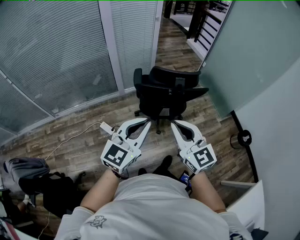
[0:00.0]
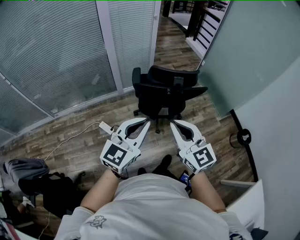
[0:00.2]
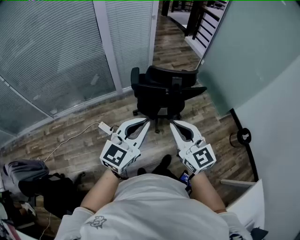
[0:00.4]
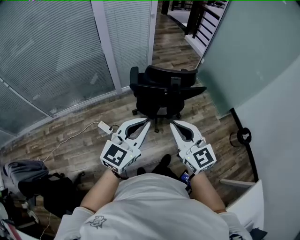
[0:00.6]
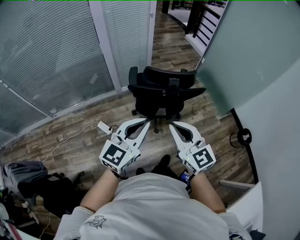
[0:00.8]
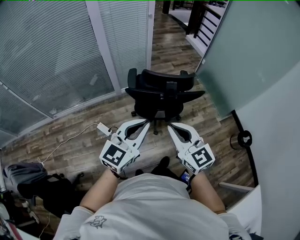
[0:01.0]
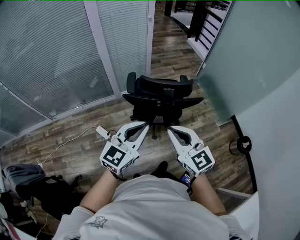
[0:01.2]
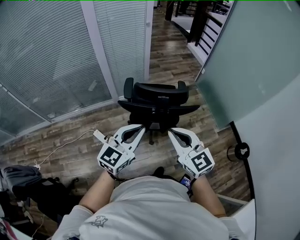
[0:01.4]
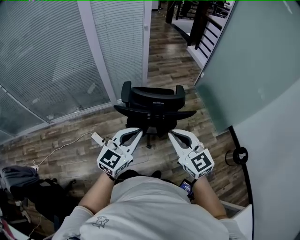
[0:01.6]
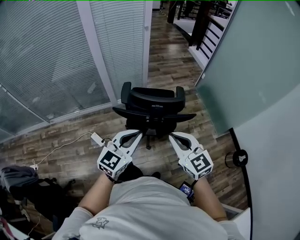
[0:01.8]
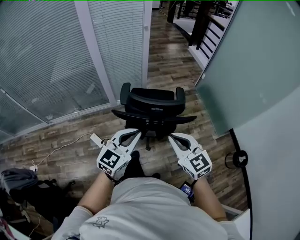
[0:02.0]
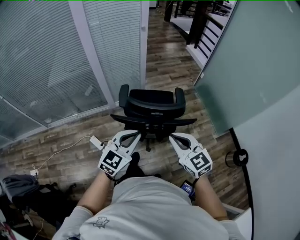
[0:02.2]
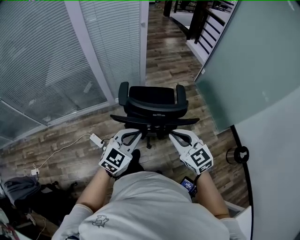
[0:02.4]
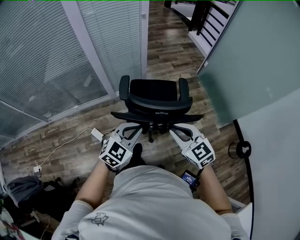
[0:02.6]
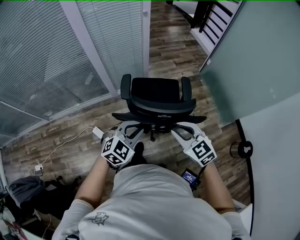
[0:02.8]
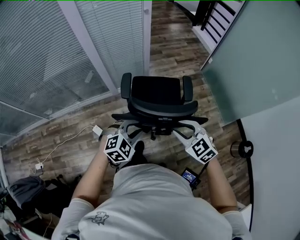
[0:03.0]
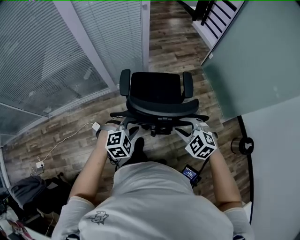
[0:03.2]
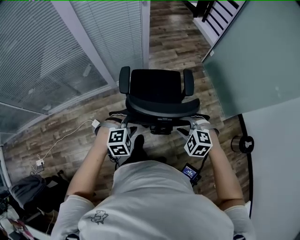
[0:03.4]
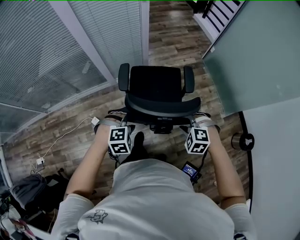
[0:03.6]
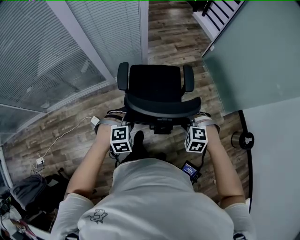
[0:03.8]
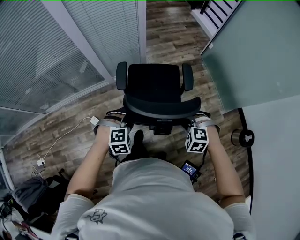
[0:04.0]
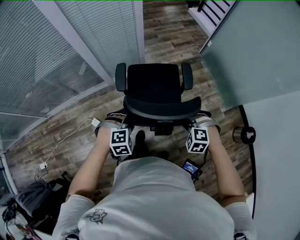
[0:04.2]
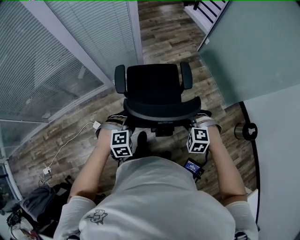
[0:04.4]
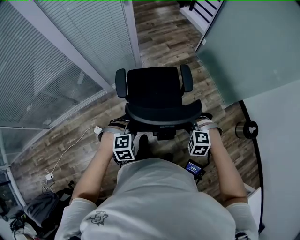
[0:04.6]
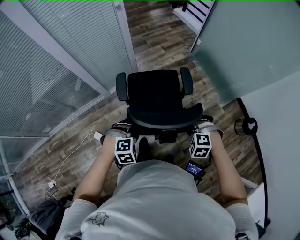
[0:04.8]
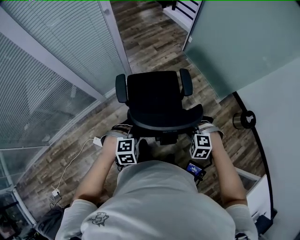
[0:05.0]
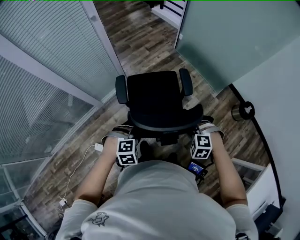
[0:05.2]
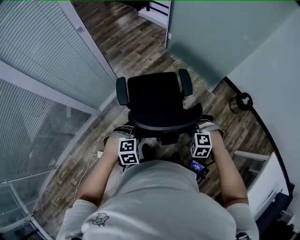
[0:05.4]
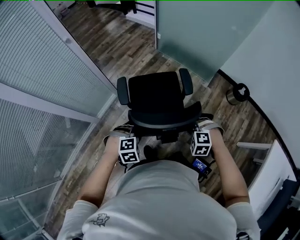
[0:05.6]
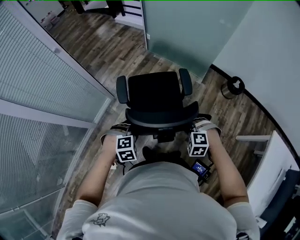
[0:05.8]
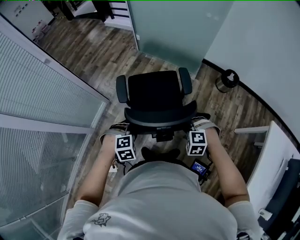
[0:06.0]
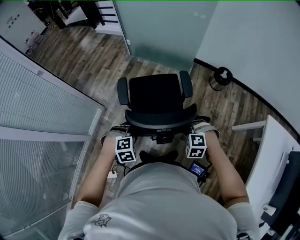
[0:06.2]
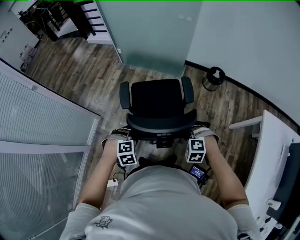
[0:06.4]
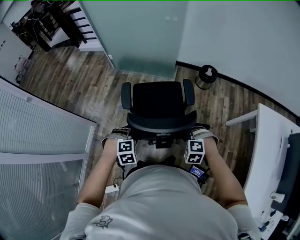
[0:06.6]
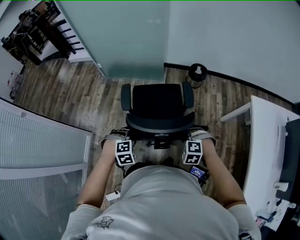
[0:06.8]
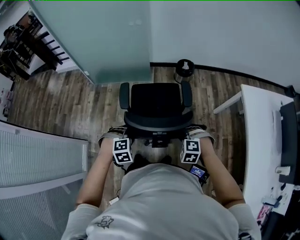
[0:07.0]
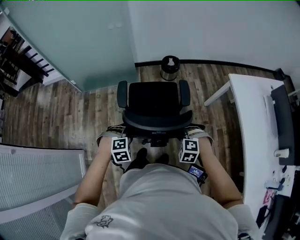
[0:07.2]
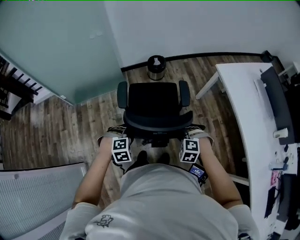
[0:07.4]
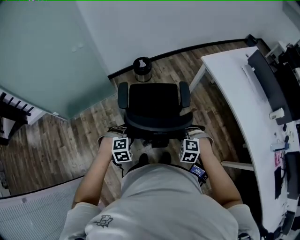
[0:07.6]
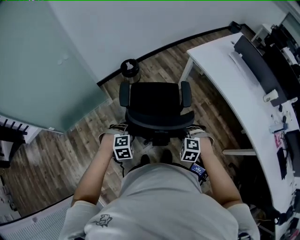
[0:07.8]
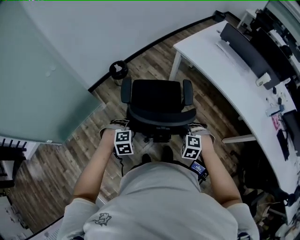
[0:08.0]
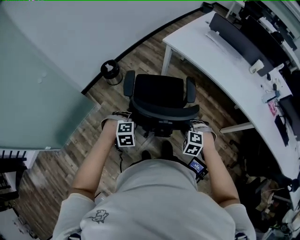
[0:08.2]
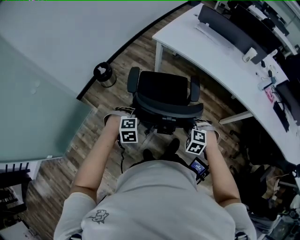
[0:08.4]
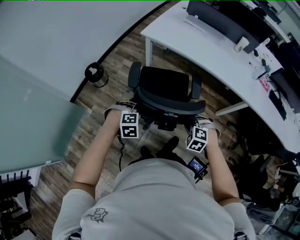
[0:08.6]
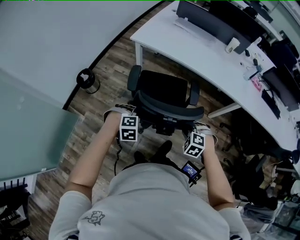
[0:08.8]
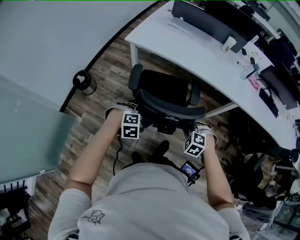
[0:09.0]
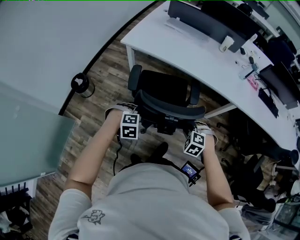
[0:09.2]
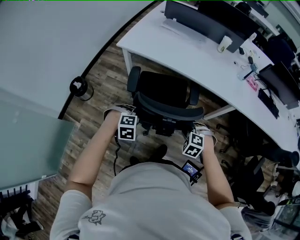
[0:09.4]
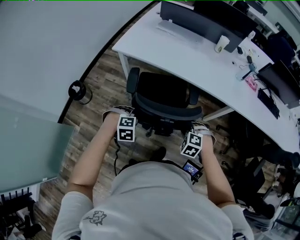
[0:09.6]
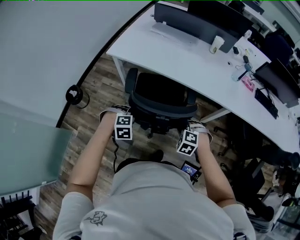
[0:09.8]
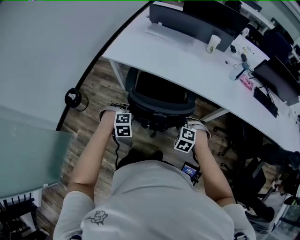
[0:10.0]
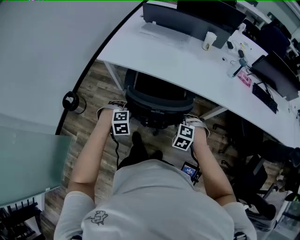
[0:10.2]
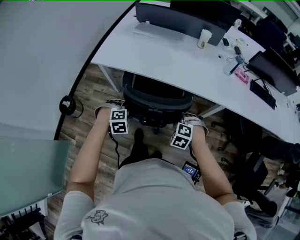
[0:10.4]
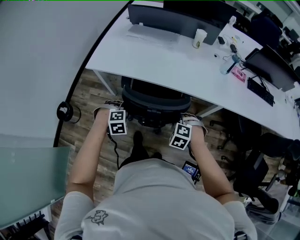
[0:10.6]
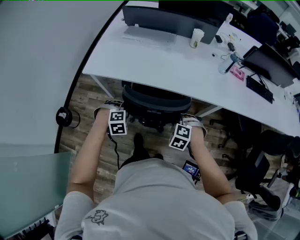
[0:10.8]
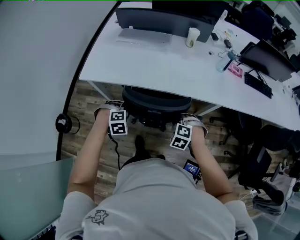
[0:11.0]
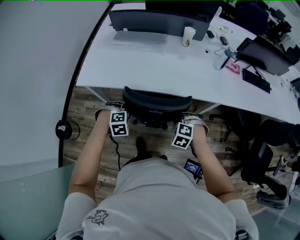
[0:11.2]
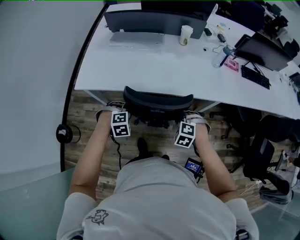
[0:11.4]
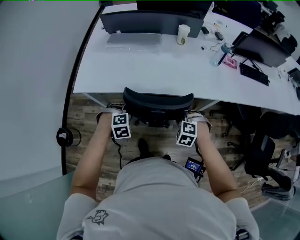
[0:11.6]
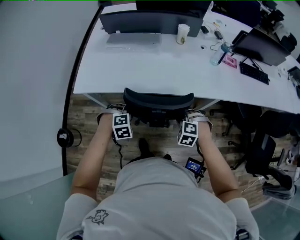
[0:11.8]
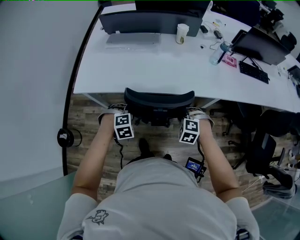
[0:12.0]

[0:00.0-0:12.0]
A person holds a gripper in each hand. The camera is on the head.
0:00.0 to 0:01.6: Both grippers travel together forward and to the right, some 20 cm.
0:01.6 to 0:03.0: The left gripper heads downward and forward, covering about 25 cm, tilts its fingers about 40 degrees downward, and opens. The right gripper moves forward and downward, some 25 cm, changes its angle by some 30 degrees, and opens.
0:03.0 to 0:04.4: The right gripper travels downward and to the right by roughly 15 cm, and points its fingers about 30 degrees further downward; the left gripper goes roughly 10 cm downward, and turns by roughly 30 degrees.
0:04.4 to 0:06.0: The left gripper moves roughly 20 cm, and swivels roughly 40 degrees, while the right gripper shifts by about 20 cm, and swivels some 30 degrees.
0:06.0 to 0:07.6: The right gripper ends up approximately 30 cm from where it was, and twists roughly 50 degrees clockwise, seen from behind. Meanwhile the left gripper moves roughly 35 cm, and rotates around the line of its fingers by approximately 50 degrees, clockwise from behind.
0:07.6 to 0:09.0: The right gripper ends up approximately 25 cm from where it was, and rotates around the line of its fingers by about 50 degrees, clockwise from behind; the left gripper shifts by roughly 30 cm, and rolls clockwise, seen from behind, by roughly 40 degrees.
0:09.0 to 0:10.4: The two grippers go roughly 25 cm forward and to the right.
0:10.4 to 0:12.0: The grippers both shift forward by approximately 15 cm.

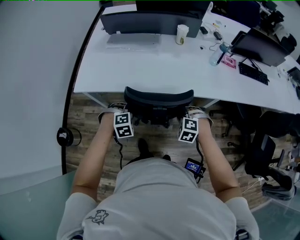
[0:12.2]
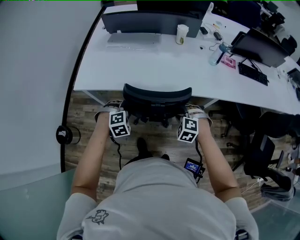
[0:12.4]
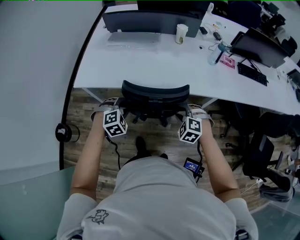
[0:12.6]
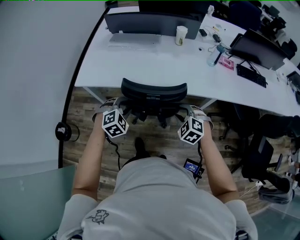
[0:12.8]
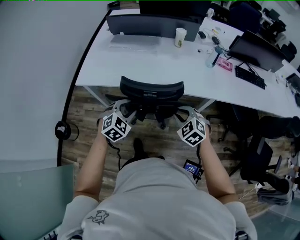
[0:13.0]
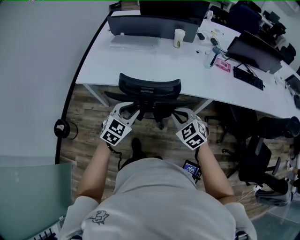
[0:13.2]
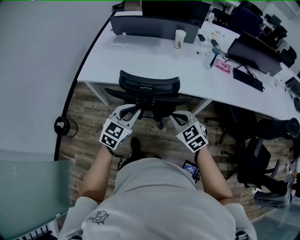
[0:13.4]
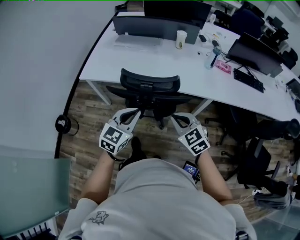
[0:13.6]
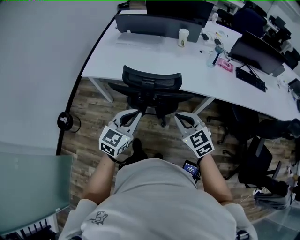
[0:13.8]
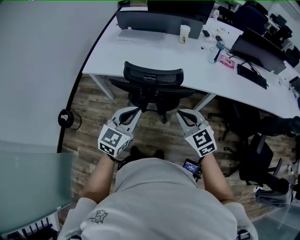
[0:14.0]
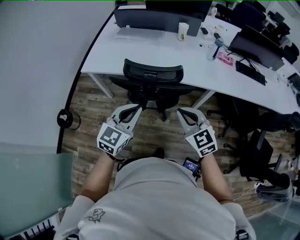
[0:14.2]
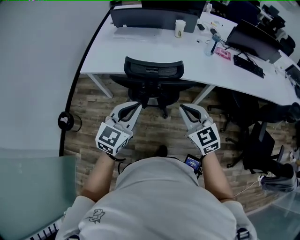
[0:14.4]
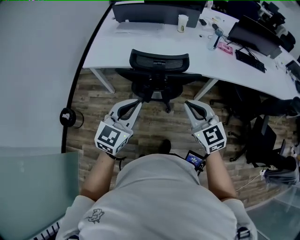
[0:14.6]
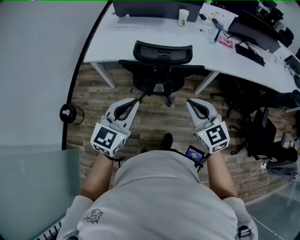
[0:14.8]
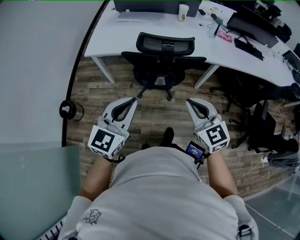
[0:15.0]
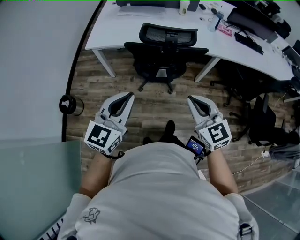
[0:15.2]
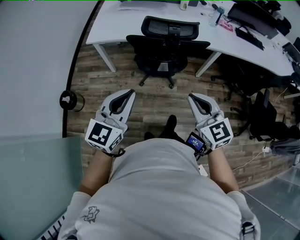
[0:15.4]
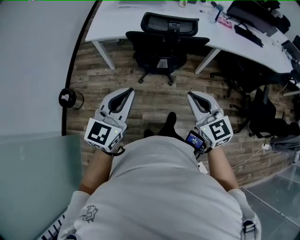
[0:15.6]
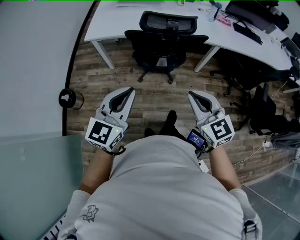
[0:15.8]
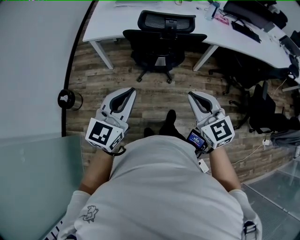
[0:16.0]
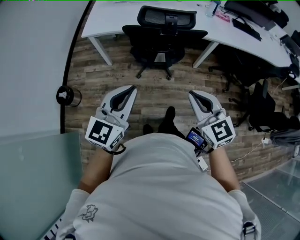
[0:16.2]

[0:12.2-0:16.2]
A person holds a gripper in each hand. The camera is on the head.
0:12.2 to 0:13.6: The left gripper travels upward, backward and to the right by roughly 30 cm, tips its fingers upward by approximately 50 degrees, and closes up. The right gripper shifts about 20 cm upward and backward, tilts its fingers some 30 degrees upward, and closes up.
0:13.6 to 0:14.8: The right gripper shifts some 15 cm backward, upward and to the left. The left gripper shifts some 20 cm backward, to the left and upward.
0:14.8 to 0:16.2: The grippers both shift backward and to the left by roughly 15 cm.

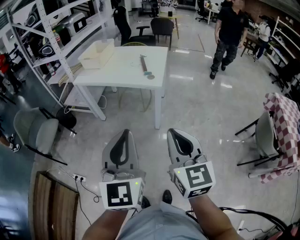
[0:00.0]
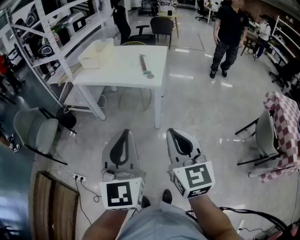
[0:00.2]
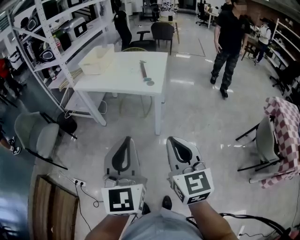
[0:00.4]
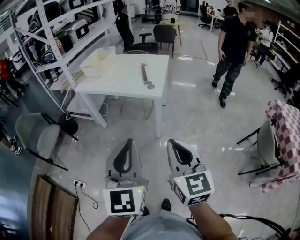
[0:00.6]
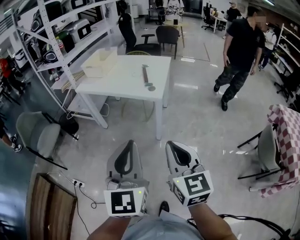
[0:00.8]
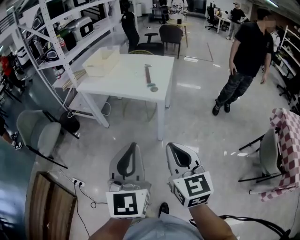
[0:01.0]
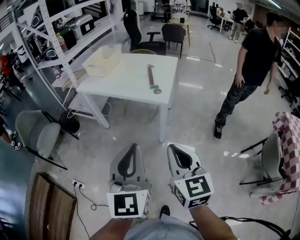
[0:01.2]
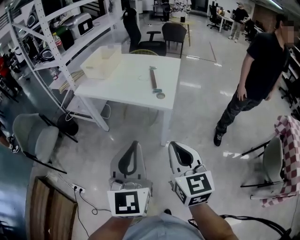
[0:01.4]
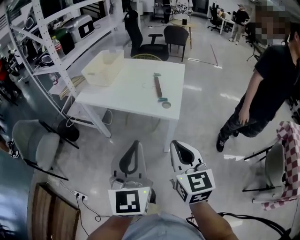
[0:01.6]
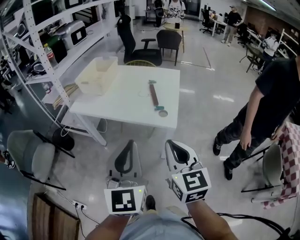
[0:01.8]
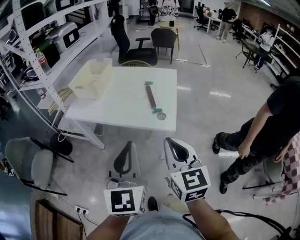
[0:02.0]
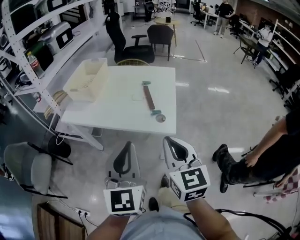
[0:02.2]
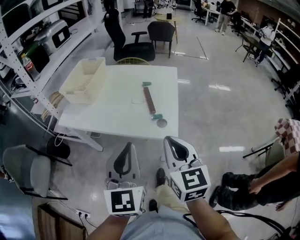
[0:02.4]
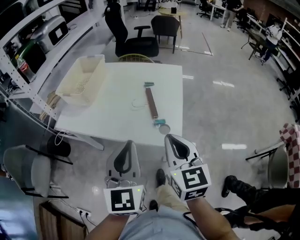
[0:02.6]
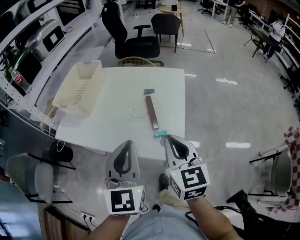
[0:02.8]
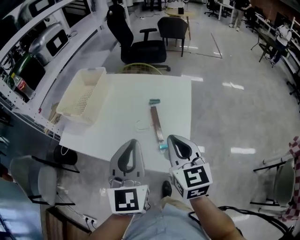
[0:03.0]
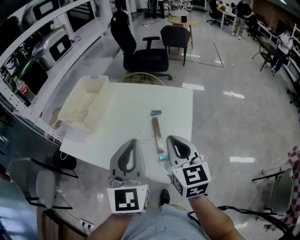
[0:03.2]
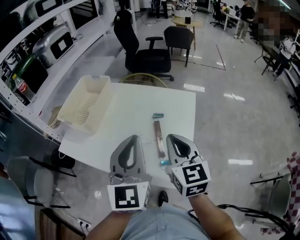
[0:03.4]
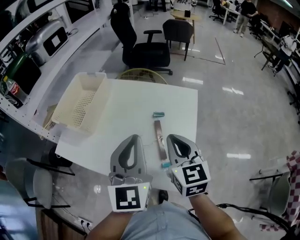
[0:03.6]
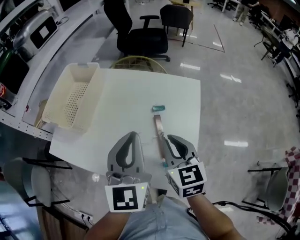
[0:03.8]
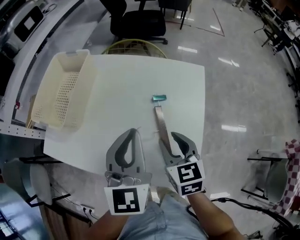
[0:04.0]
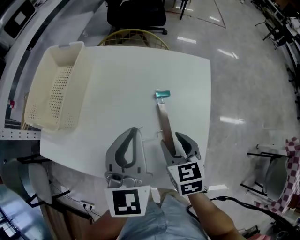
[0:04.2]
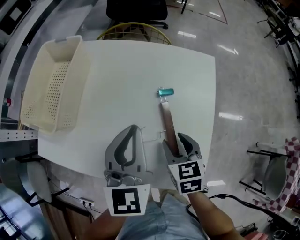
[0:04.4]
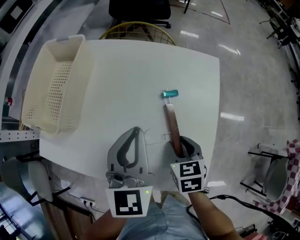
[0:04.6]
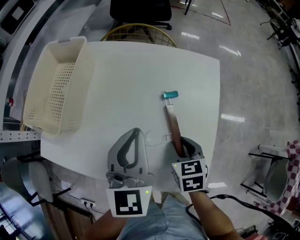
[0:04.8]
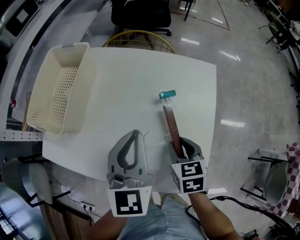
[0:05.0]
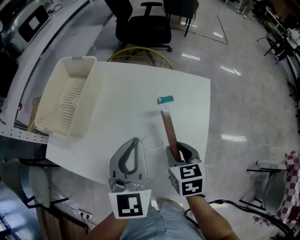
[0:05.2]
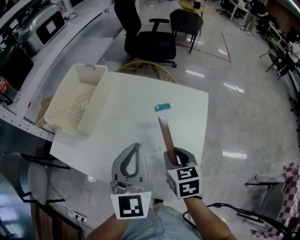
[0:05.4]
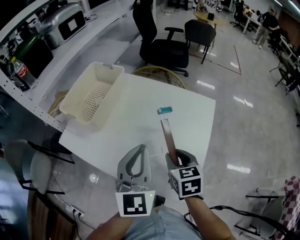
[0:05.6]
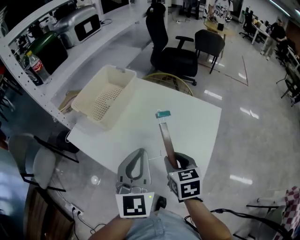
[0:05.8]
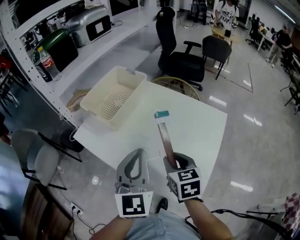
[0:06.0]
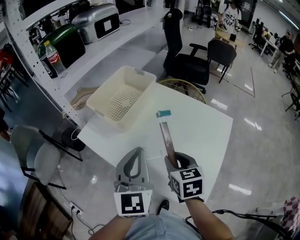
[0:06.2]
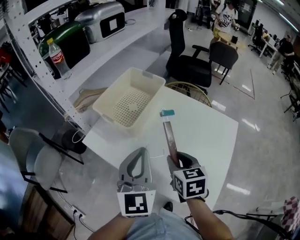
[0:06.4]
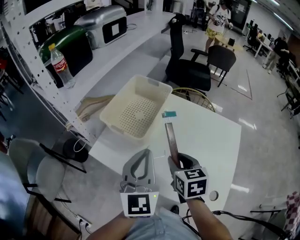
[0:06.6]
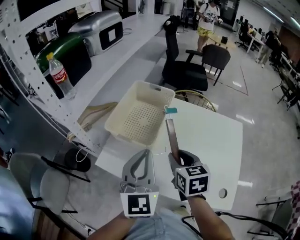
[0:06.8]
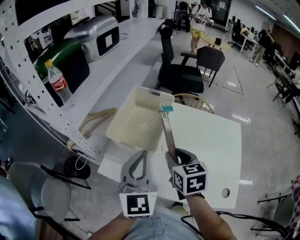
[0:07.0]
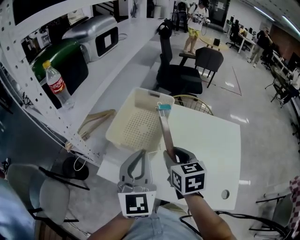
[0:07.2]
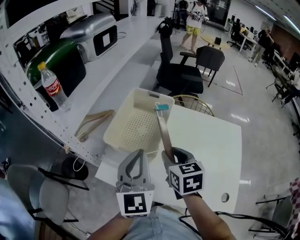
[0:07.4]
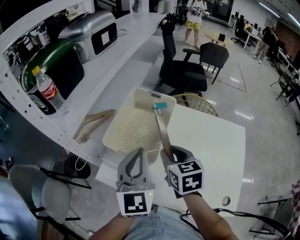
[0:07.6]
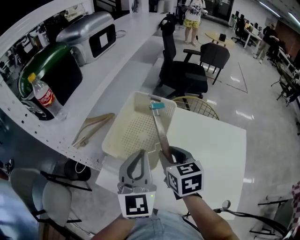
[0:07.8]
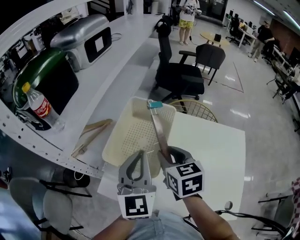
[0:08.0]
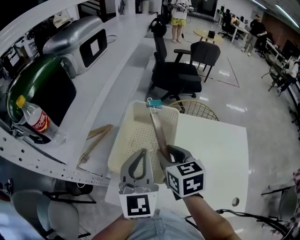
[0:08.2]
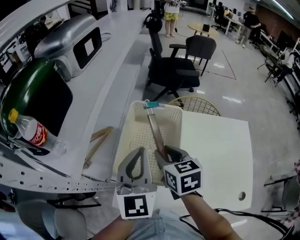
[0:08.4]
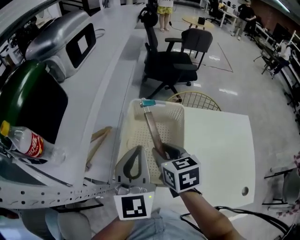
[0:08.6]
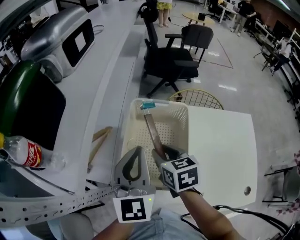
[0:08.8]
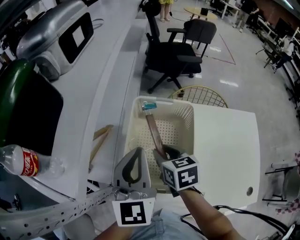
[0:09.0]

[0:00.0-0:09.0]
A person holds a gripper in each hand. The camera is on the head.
0:00.0 to 0:01.6: The two grippers go some 25 cm forward.
0:01.6 to 0:03.0: Both grippers move forward, roughly 35 cm.
0:03.0 to 0:04.4: The left gripper heads forward and downward, covering some 20 cm, while the right gripper heads downward and forward, covering about 25 cm, angles its fingers downward, by approximately 30 degrees, and opens its fingers.
0:04.4 to 0:06.0: The left gripper travels backward, upward and to the left by about 15 cm, and swivels roughly 20 degrees. Meanwhile the right gripper travels upward and to the left by about 15 cm.
0:06.0 to 0:07.6: Both grippers travel together to the left and forward, roughly 30 cm.
0:07.6 to 0:09.0: The right gripper goes some 20 cm forward, to the left and downward, while the left gripper travels forward and to the left by about 20 cm.
